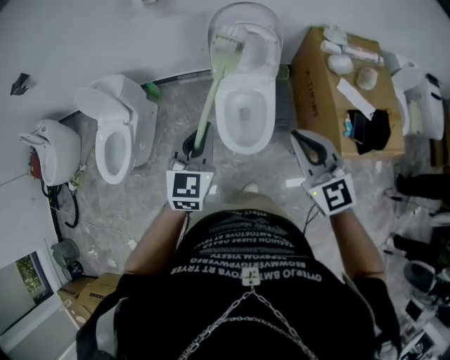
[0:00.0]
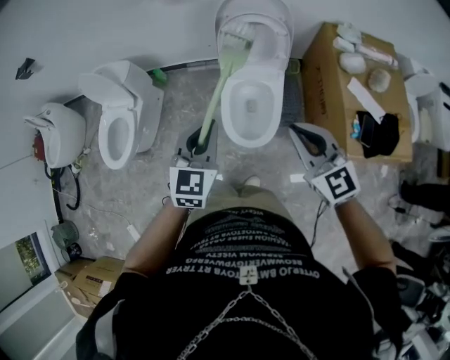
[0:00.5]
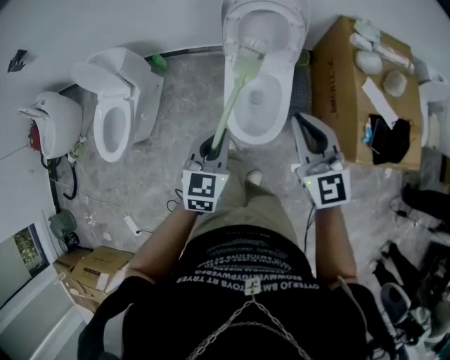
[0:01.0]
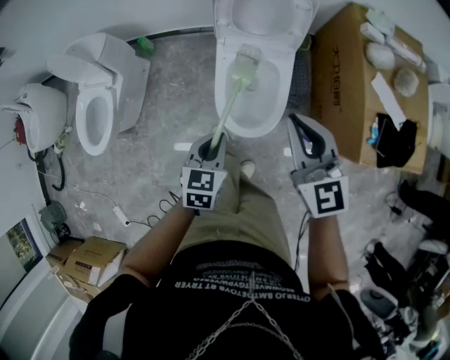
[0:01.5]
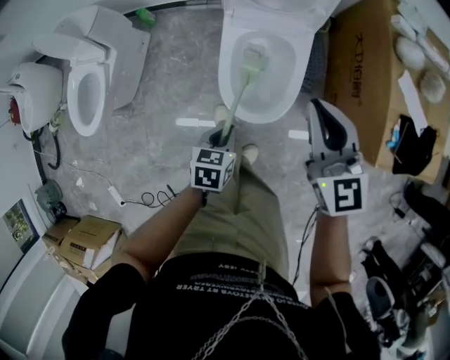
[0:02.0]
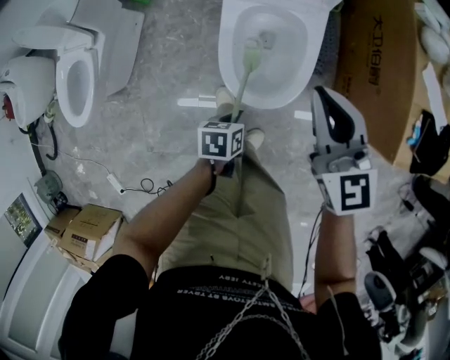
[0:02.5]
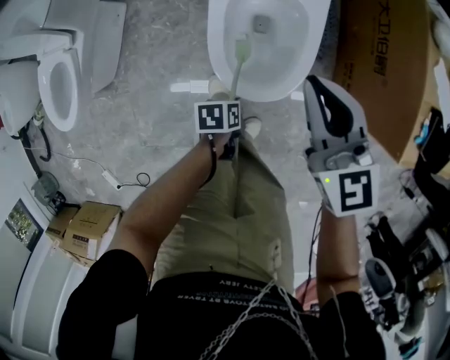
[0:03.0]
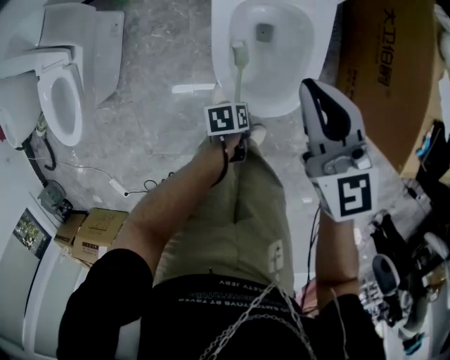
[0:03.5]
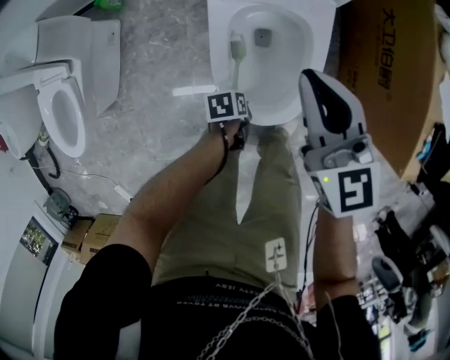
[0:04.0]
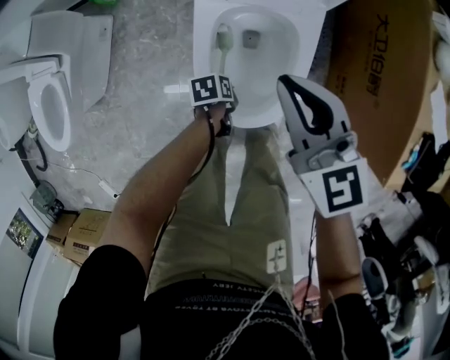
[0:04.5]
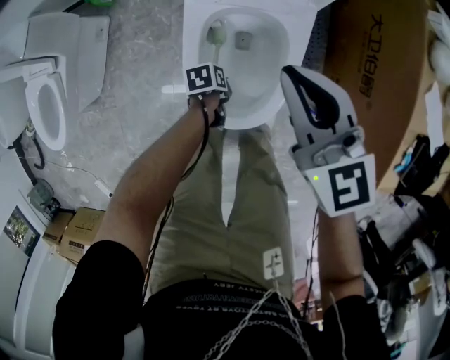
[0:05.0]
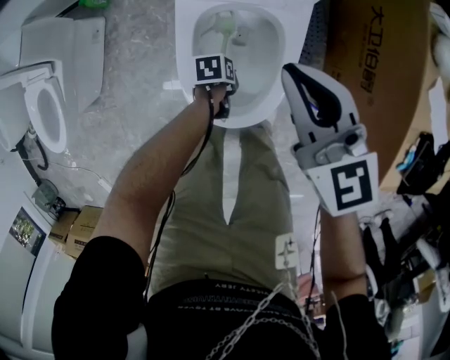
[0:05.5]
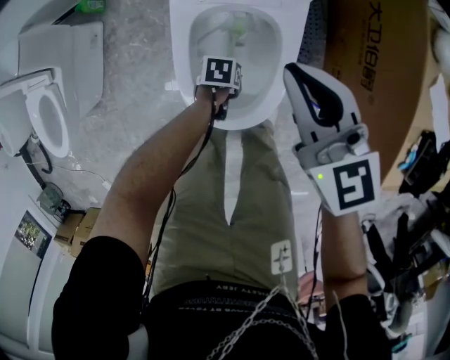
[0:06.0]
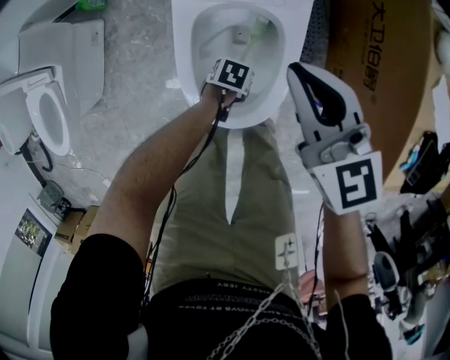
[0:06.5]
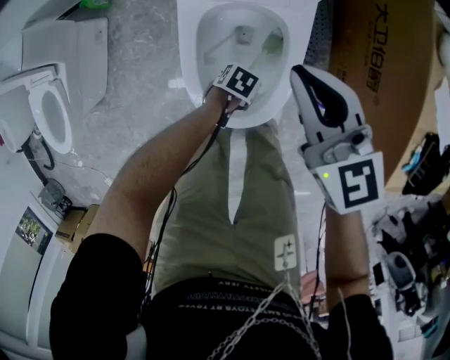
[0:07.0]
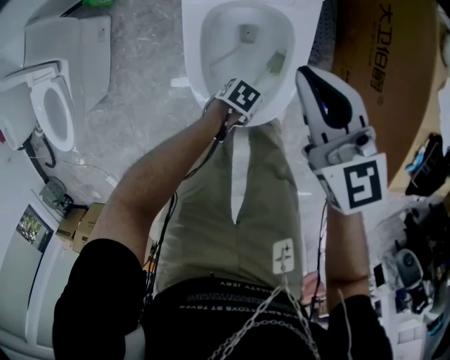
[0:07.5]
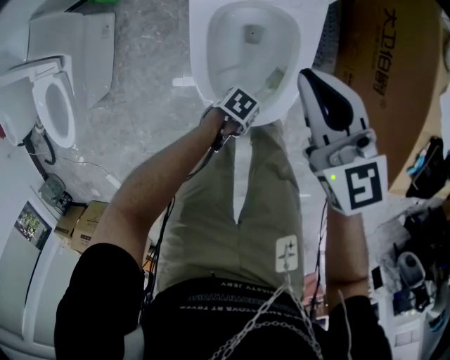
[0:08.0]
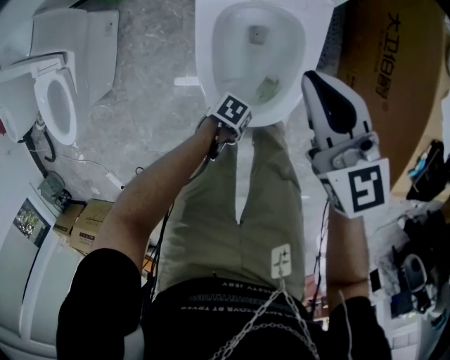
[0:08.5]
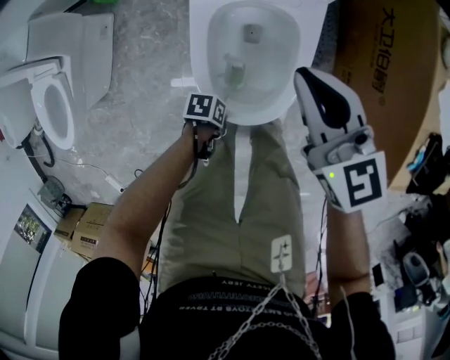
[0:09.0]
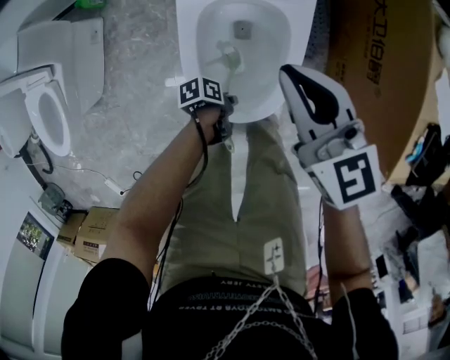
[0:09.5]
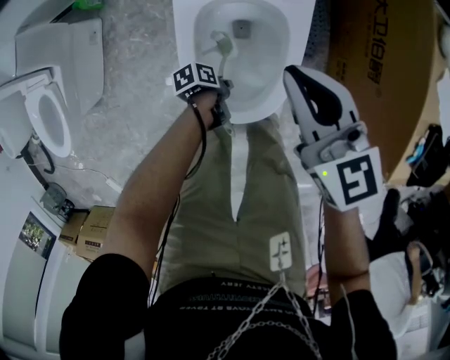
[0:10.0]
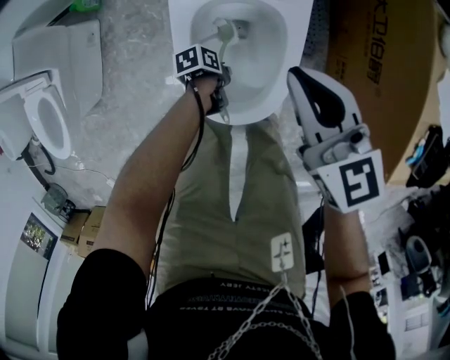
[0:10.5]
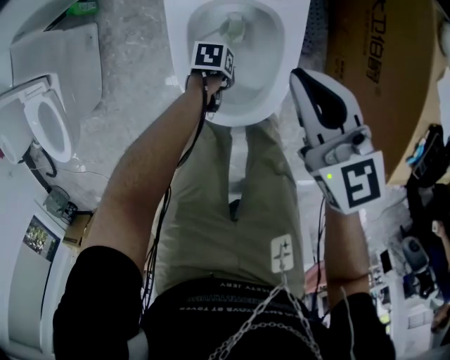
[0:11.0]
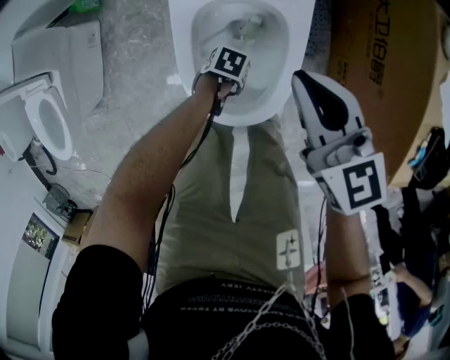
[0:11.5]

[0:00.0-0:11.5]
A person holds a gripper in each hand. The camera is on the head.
0:00.0 to 0:02.0: The left gripper is displaced downward by about 40 cm, and angles its fingers downward, by about 40 degrees; the right gripper travels downward and forward by some 25 cm.
0:02.0 to 0:04.0: The right gripper heads downward, forward and to the left, covering approximately 20 cm. The left gripper moves downward, approximately 25 cm, and changes its angle by approximately 40 degrees.
0:04.0 to 0:06.0: The right gripper changes place by approximately 10 cm. The left gripper ends up some 15 cm from where it was.
0:06.0 to 0:07.5: The left gripper changes place by some 10 cm, and changes its angle by roughly 30 degrees.
0:07.5 to 0:09.5: The left gripper rolls counterclockwise, seen from behind, by about 50 degrees.
0:09.5 to 0:11.5: The left gripper shifts by about 10 cm, and twists roughly 40 degrees clockwise, seen from behind.

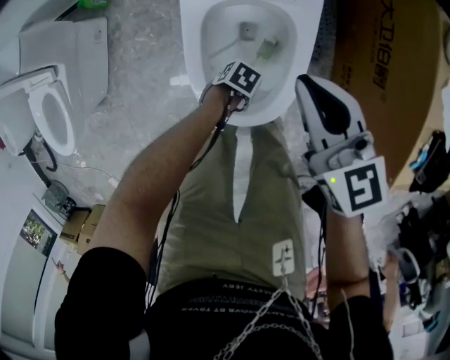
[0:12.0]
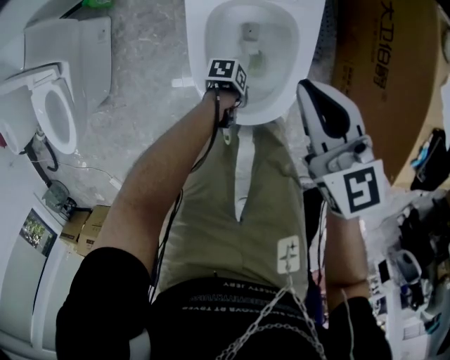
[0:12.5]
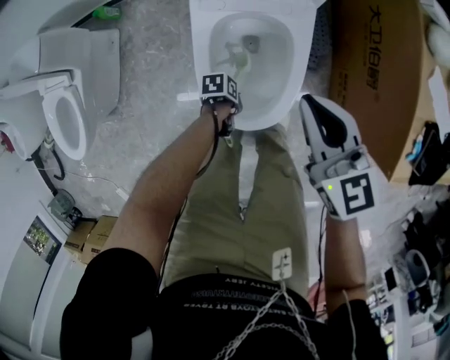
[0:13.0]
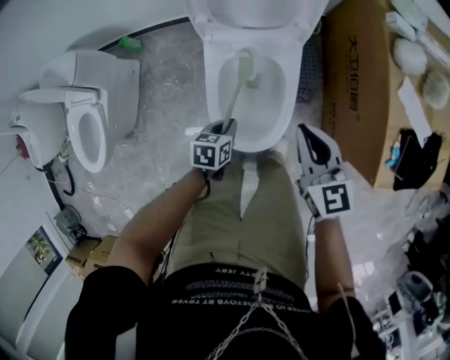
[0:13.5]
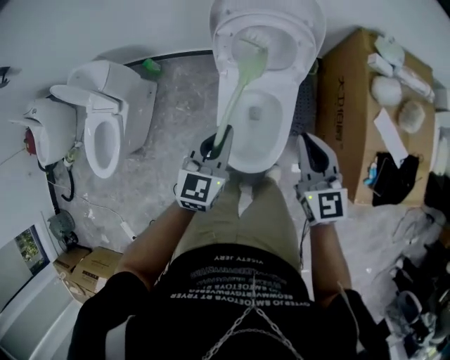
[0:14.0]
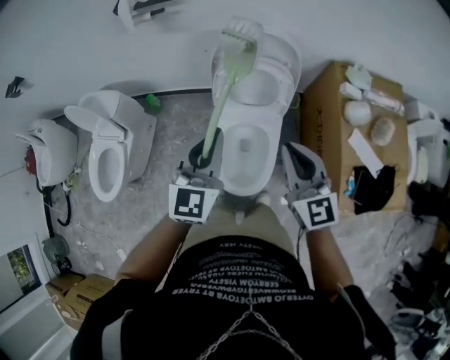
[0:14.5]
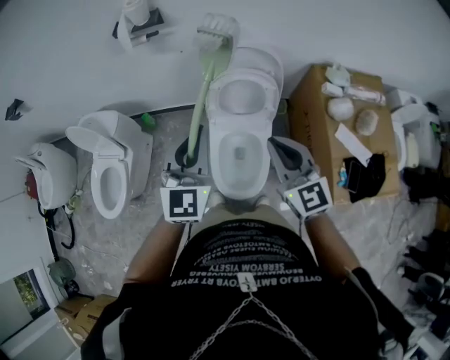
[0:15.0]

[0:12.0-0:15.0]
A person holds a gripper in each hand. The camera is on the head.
0:12.0 to 0:13.5: The right gripper is displaced upward by approximately 10 cm. The left gripper is displaced upward by about 20 cm, and rotates about 40 degrees.
0:13.5 to 0:15.0: The right gripper is displaced upward by some 35 cm, and swivels some 20 degrees; the left gripper shifts approximately 60 cm upward, and points its fingers roughly 50 degrees further upward.

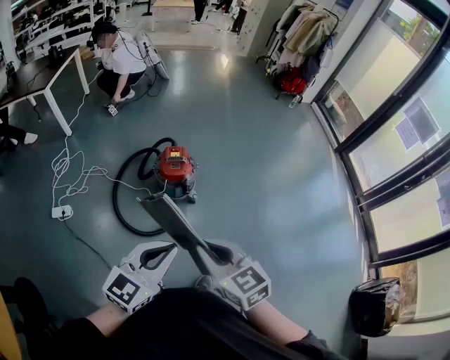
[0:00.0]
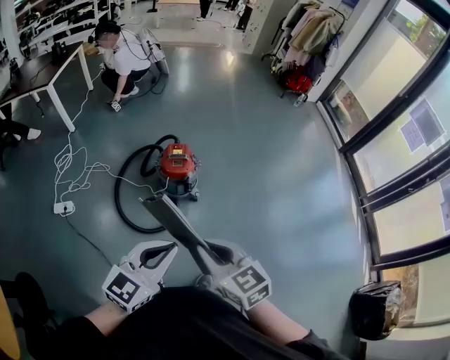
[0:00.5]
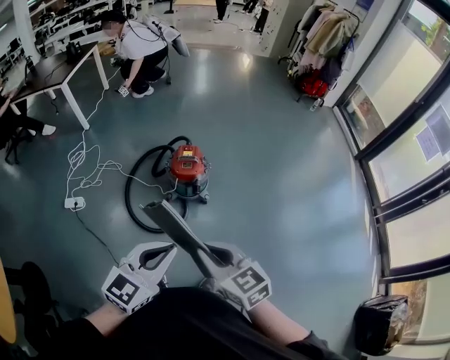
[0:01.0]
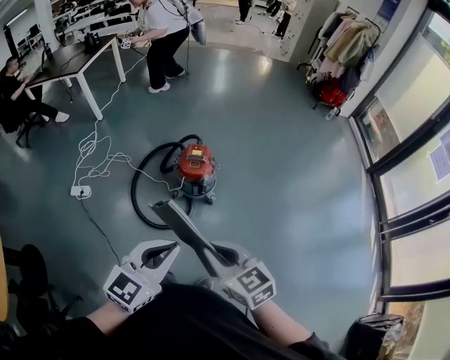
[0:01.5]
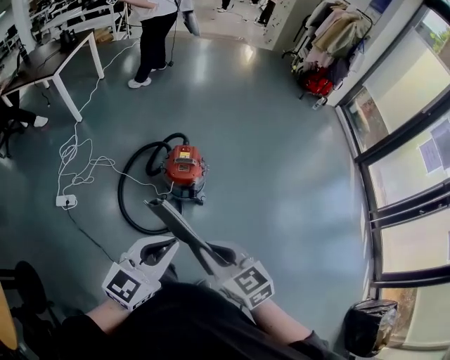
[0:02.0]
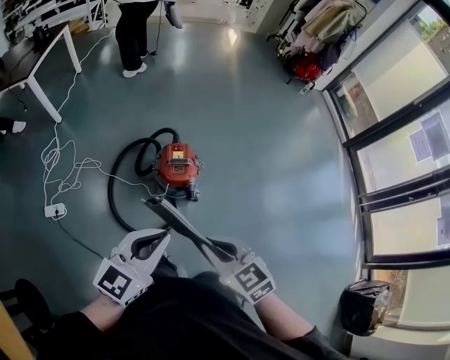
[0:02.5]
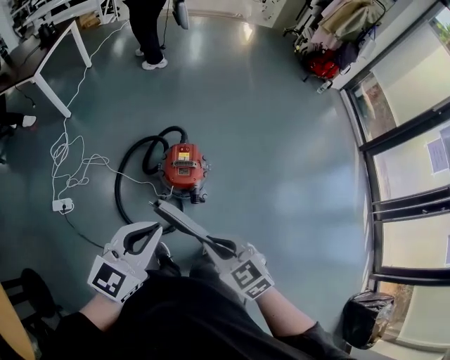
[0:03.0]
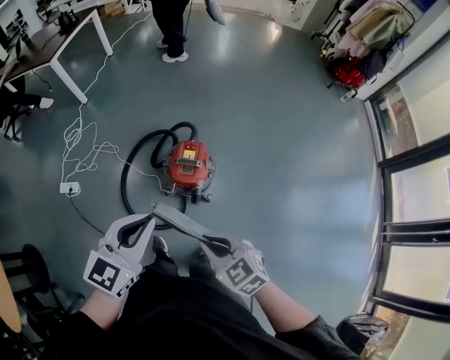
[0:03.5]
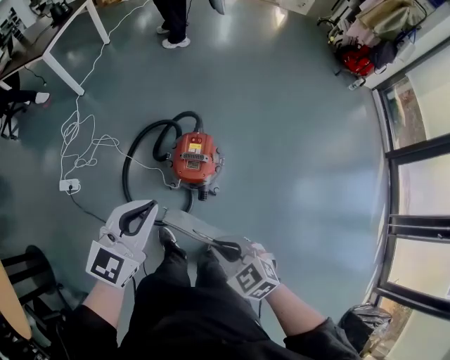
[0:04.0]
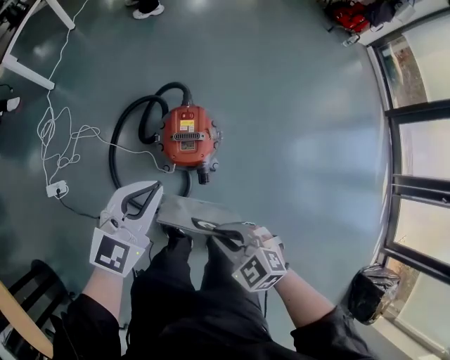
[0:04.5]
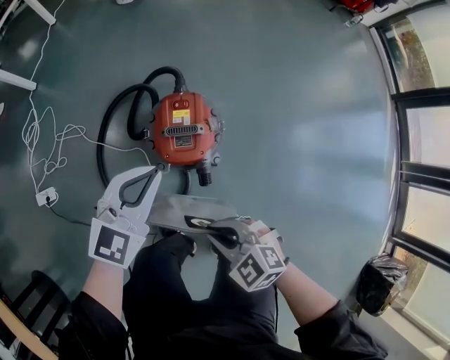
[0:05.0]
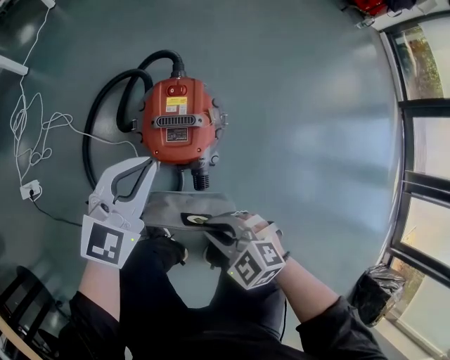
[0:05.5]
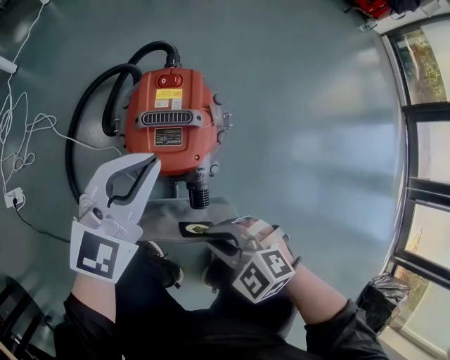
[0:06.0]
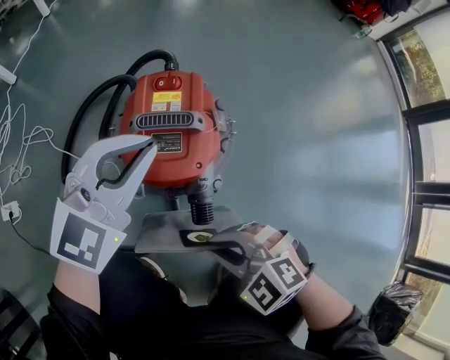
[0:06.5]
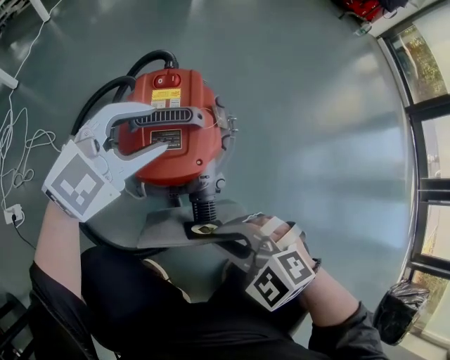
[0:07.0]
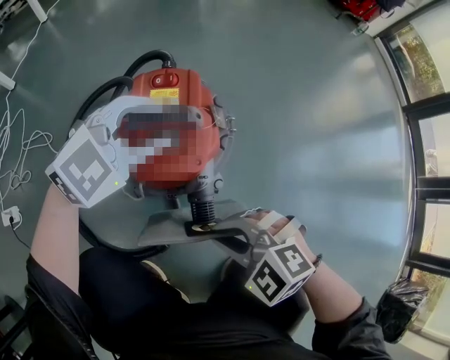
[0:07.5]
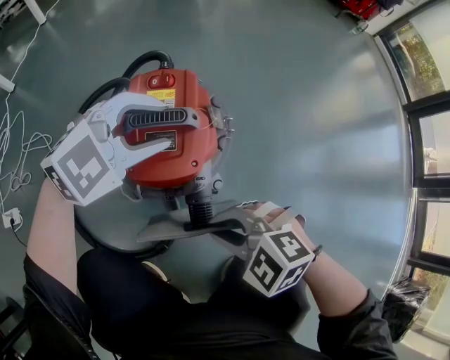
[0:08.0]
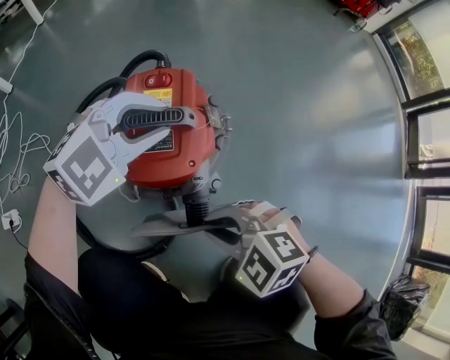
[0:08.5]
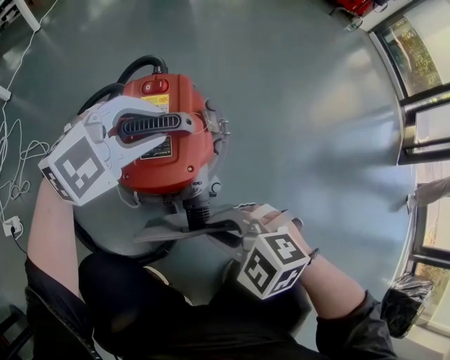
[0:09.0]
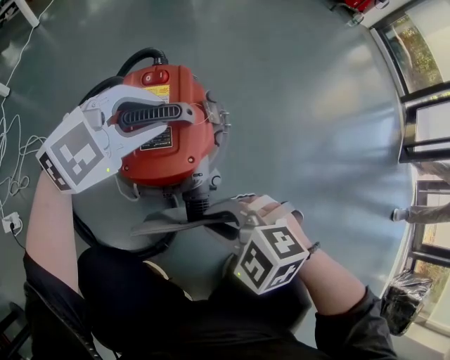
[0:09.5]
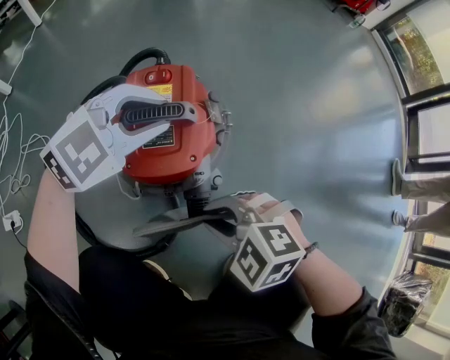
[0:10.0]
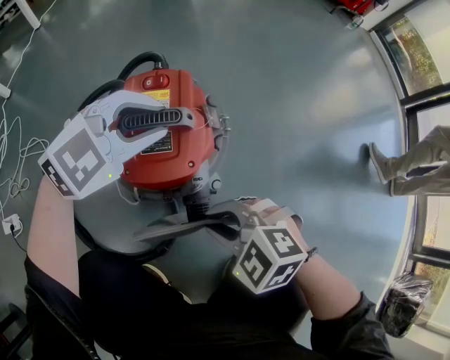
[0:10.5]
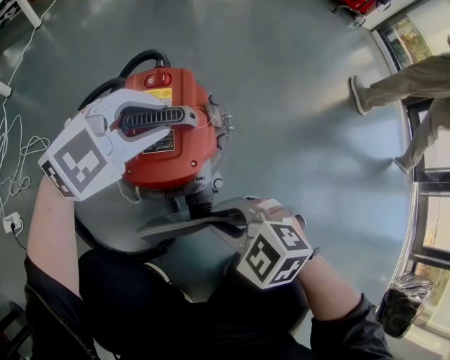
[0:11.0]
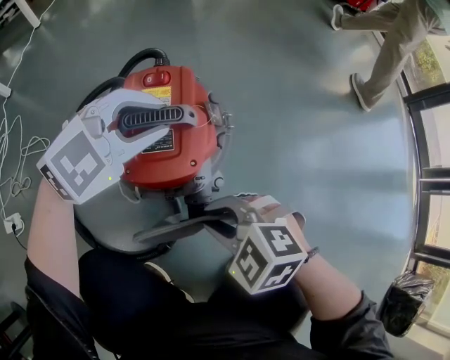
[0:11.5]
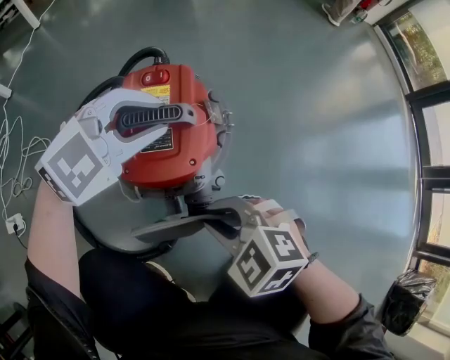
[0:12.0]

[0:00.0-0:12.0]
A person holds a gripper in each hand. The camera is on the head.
0:00.0 to 0:02.0: Both grippers move forward, roughly 10 cm.
0:02.0 to 0:04.0: The left gripper heads forward, covering roughly 25 cm; the right gripper moves forward and downward, some 20 cm, and rotates some 30 degrees.
0:04.0 to 0:06.0: The two grippers go some 40 cm downward.
0:06.0 to 0:08.0: The right gripper ends up roughly 5 cm from where it was. The left gripper travels downward by about 10 cm, swivels some 40 degrees, and opens its fingers.
0:08.0 to 0:10.0: The left gripper closes.
0:10.0 to 0:12.0: The grippers stay close to where they were, moving slightly.
